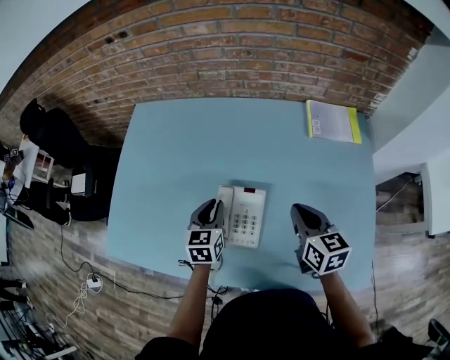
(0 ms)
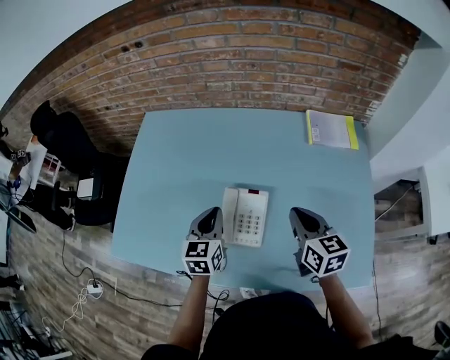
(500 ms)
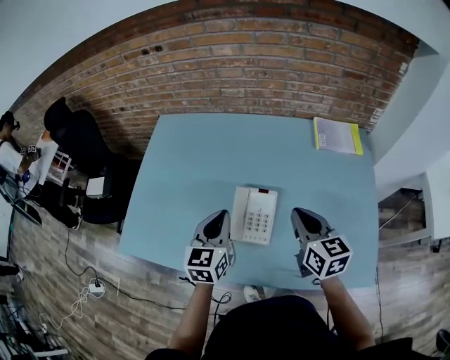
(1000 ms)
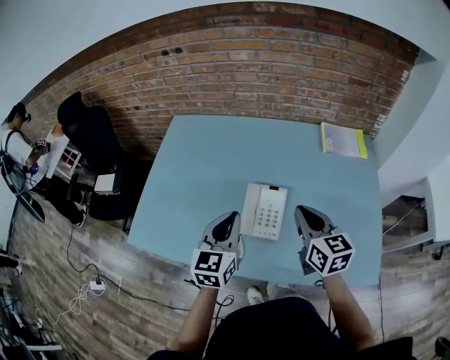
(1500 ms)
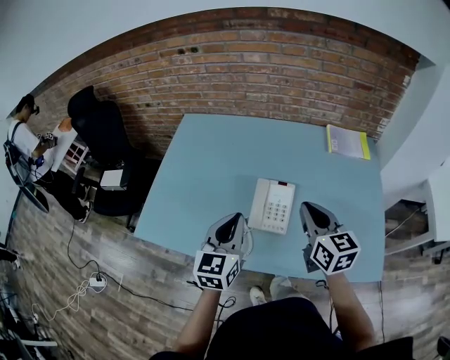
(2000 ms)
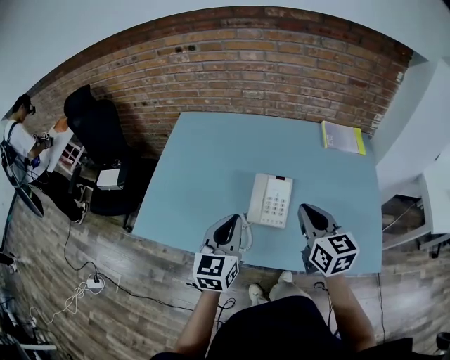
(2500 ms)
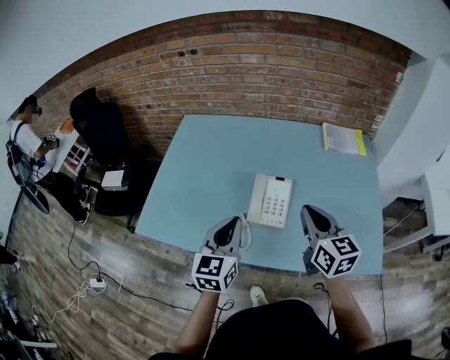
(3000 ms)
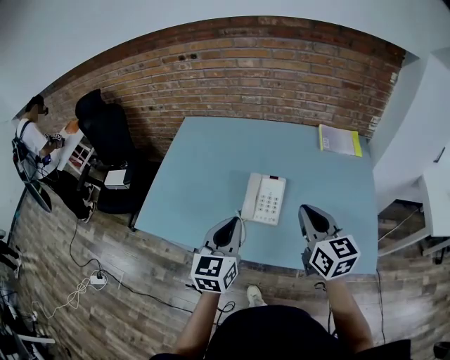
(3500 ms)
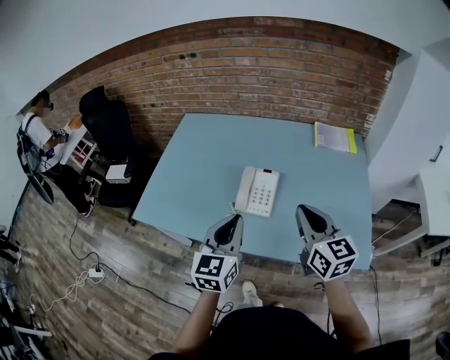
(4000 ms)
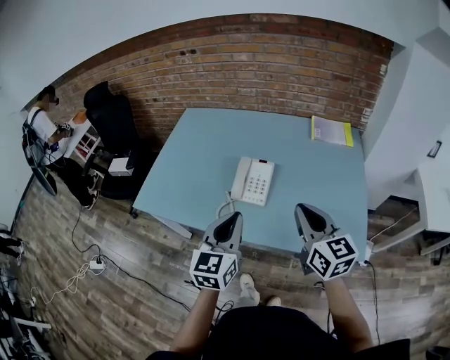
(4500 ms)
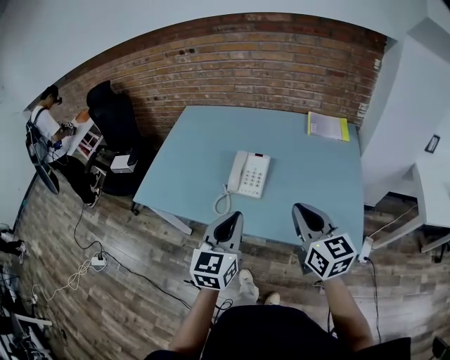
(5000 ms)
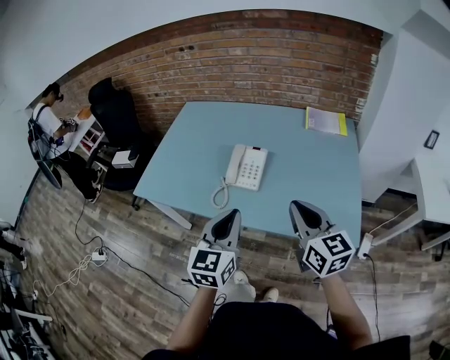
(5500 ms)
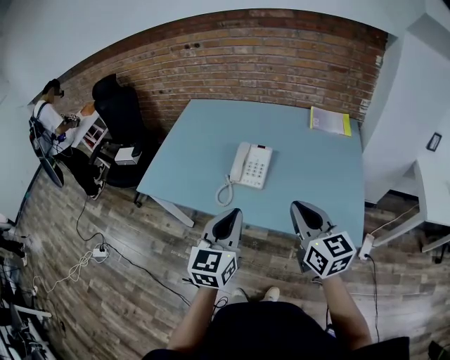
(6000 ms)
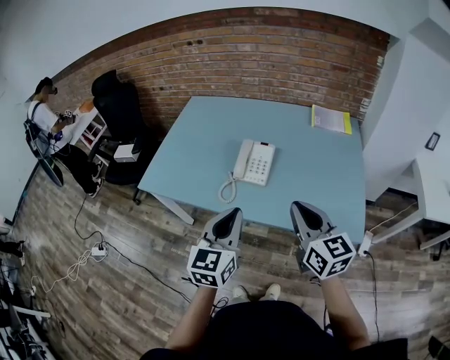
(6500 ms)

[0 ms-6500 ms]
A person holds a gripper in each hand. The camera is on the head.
0 ms to 2000 ms: The left gripper is displaced backward and upward by approximately 25 cm, and rotates approximately 20 degrees. Meanwhile the right gripper is displaced upward, backward and to the left by about 20 cm.
2000 ms to 4500 ms: Both grippers move backward and to the right, some 20 cm.
4500 ms to 6500 ms: The two grippers go approximately 10 cm backward.

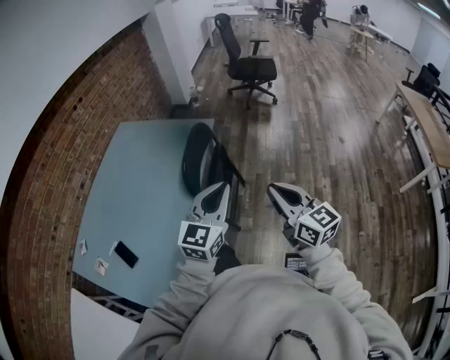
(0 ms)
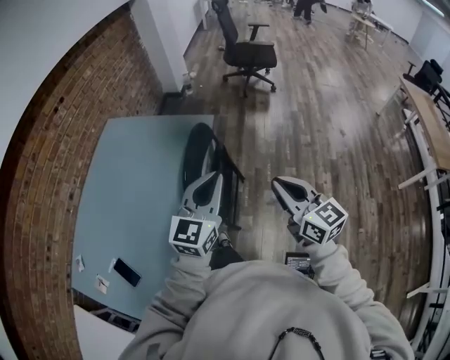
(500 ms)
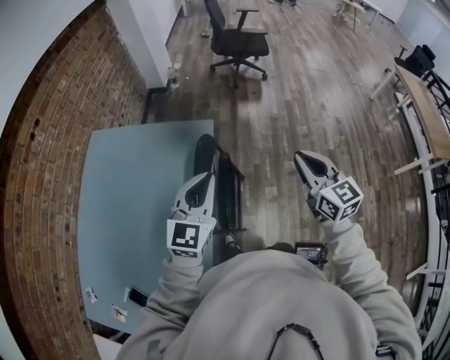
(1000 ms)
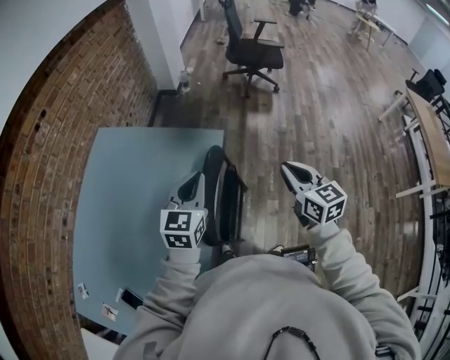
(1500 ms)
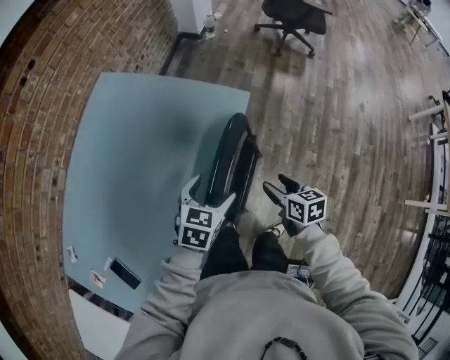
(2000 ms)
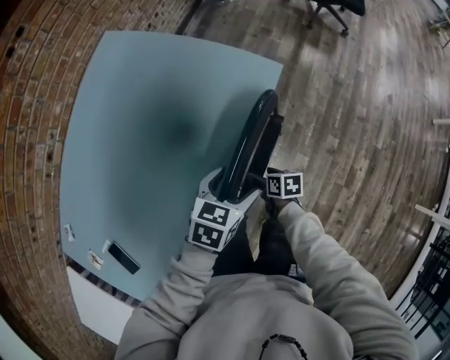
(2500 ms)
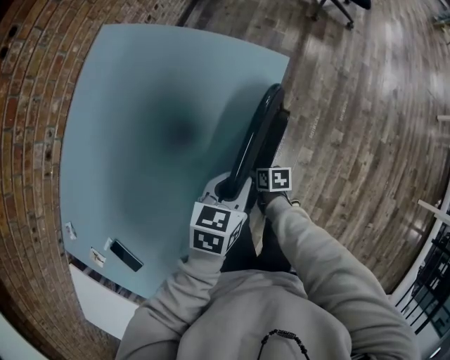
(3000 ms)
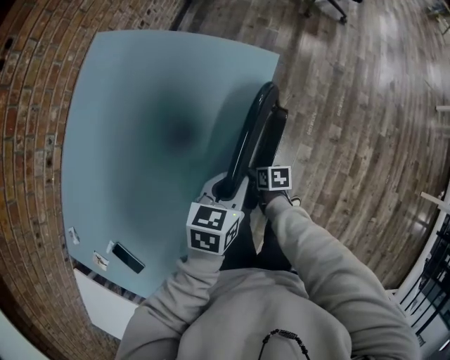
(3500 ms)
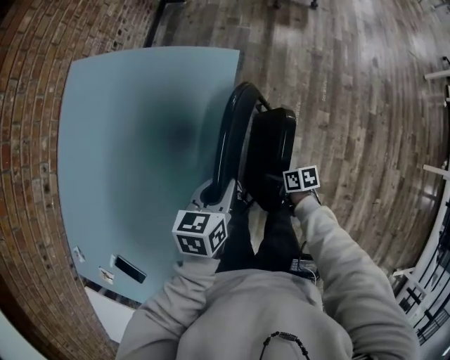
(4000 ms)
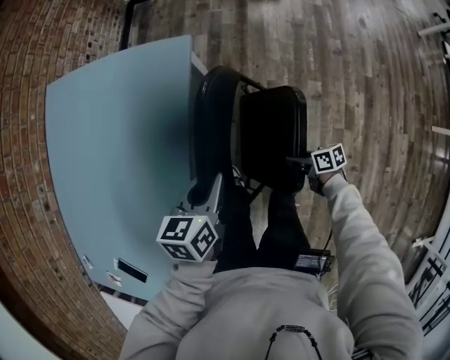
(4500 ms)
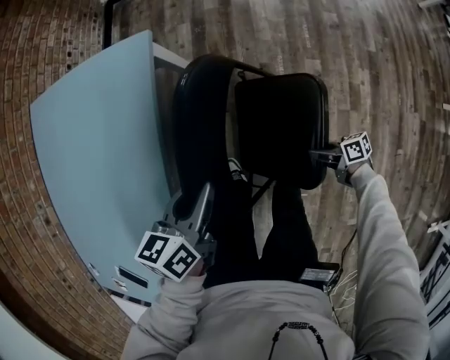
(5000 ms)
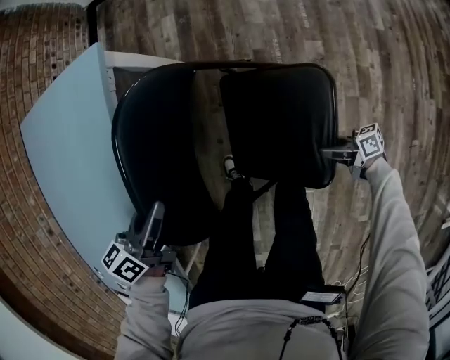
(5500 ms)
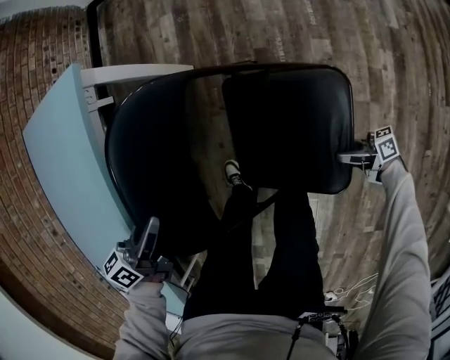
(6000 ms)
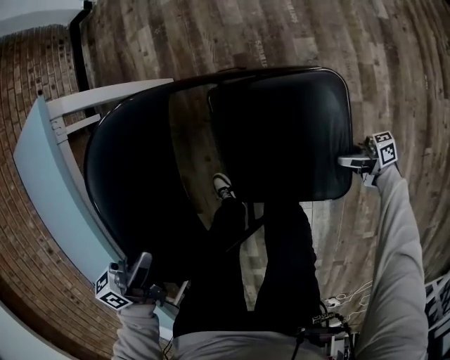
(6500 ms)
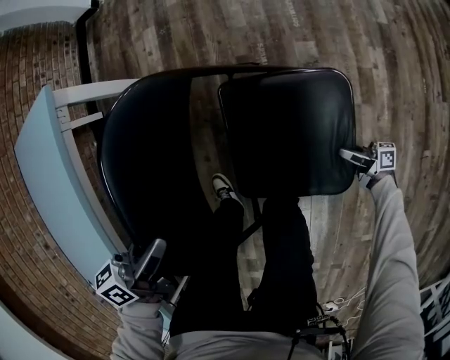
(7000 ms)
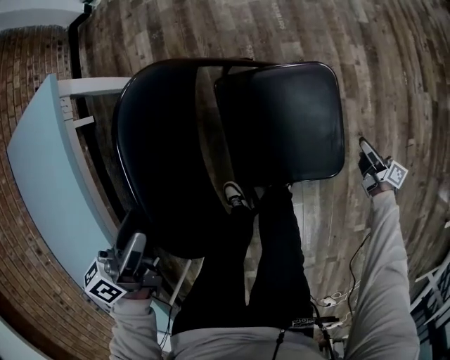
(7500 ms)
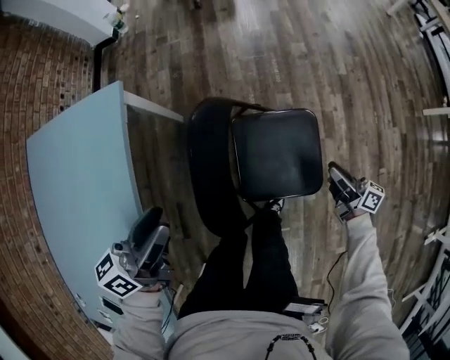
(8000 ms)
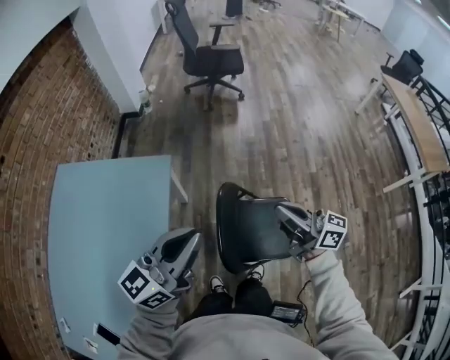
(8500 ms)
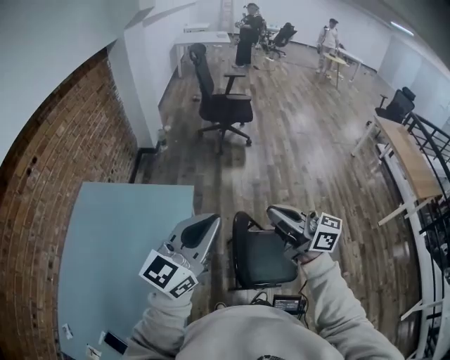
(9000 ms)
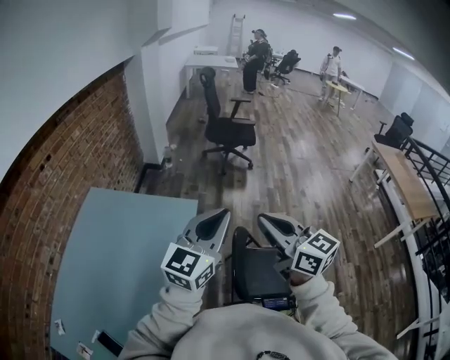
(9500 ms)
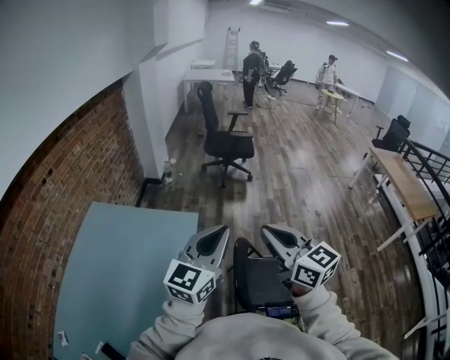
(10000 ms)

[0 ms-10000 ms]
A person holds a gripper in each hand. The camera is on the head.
0 ms to 2000 ms: Both grippers are carried forward, roughly 40 cm. Both grippers move downward, roughly 30 cm. The right gripper points its fingers approximately 40 degrees further downward, and opens its fingers. Meanwhile the left gripper angles its fingers downward, by roughly 40 degrees, and opens up.
2000 ms to 4000 ms: The right gripper travels downward by roughly 25 cm, and rotates approximately 30 degrees. Meanwhile the left gripper goes about 5 cm downward, and closes up.
4000 ms to 6000 ms: The left gripper goes approximately 20 cm downward and to the right. The right gripper travels to the right, downward and backward by approximately 50 cm, and tilts its fingers approximately 50 degrees upward.
6000 ms to 8000 ms: The two grippers go roughly 25 cm upward. The right gripper rotates some 50 degrees, while the left gripper rotates roughly 20 degrees, and opens its fingers.
8000 ms to 10000 ms: The left gripper heads upward, covering some 40 cm, twists about 50 degrees clockwise, seen from behind, and closes up. Meanwhile the right gripper is displaced upward and to the left by approximately 80 cm, twists approximately 60 degrees counterclockwise, seen from behind, and closes.

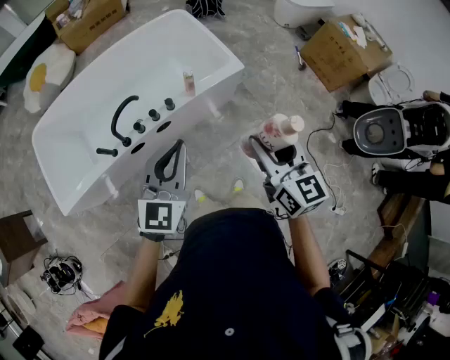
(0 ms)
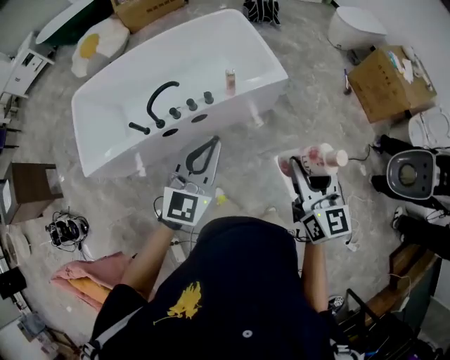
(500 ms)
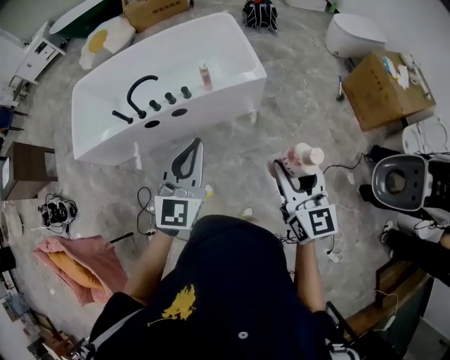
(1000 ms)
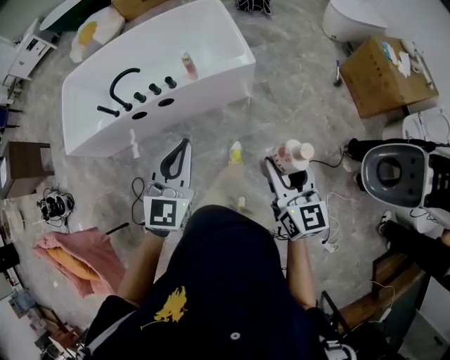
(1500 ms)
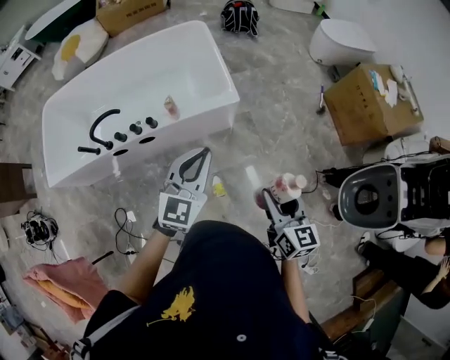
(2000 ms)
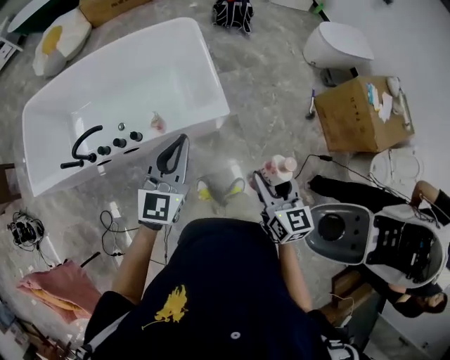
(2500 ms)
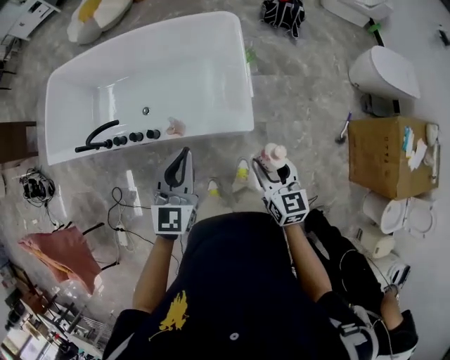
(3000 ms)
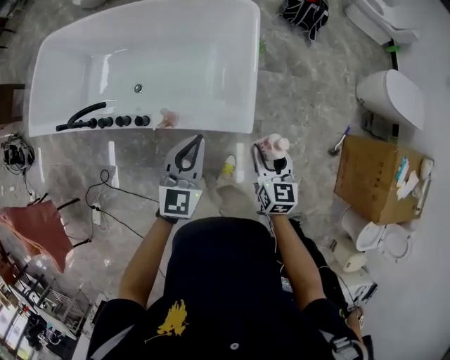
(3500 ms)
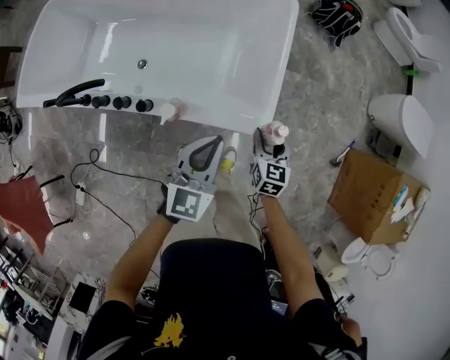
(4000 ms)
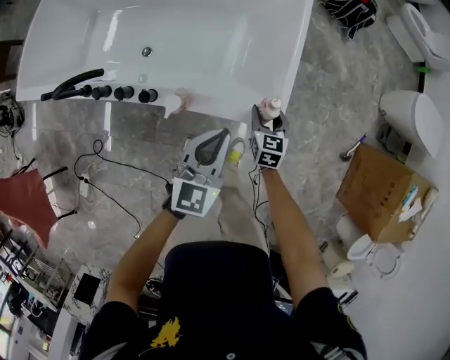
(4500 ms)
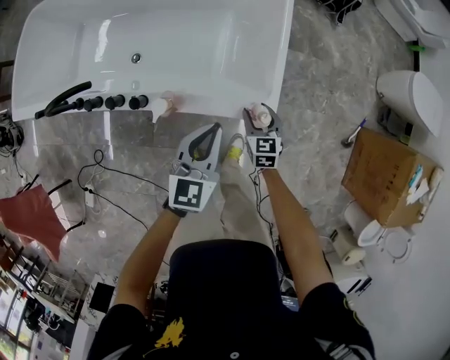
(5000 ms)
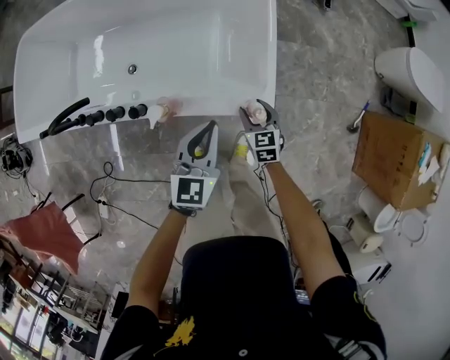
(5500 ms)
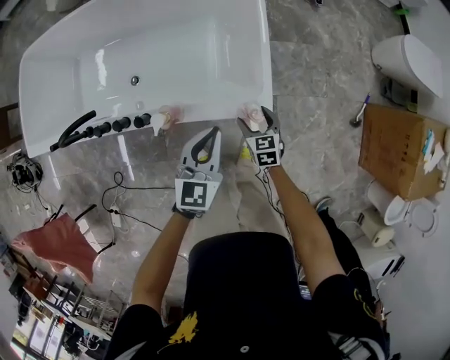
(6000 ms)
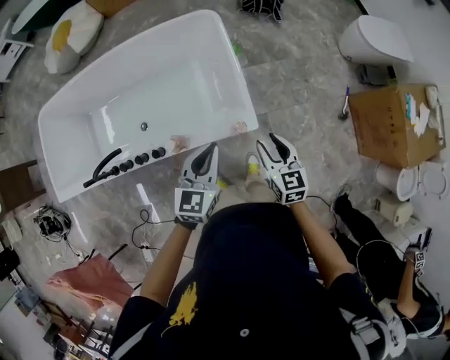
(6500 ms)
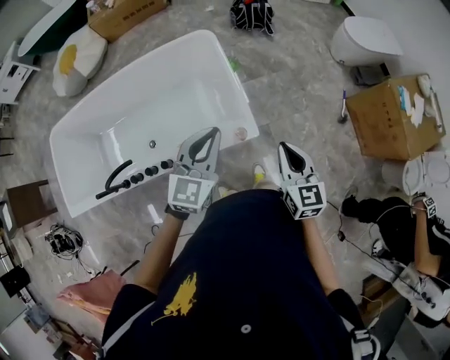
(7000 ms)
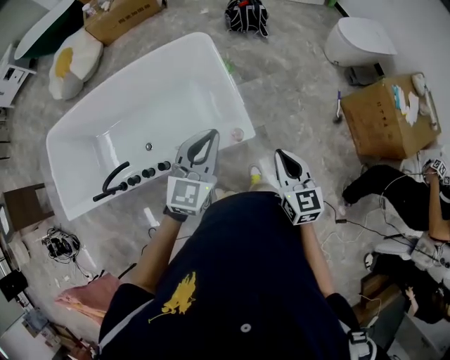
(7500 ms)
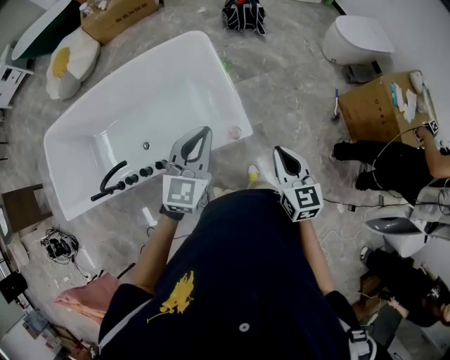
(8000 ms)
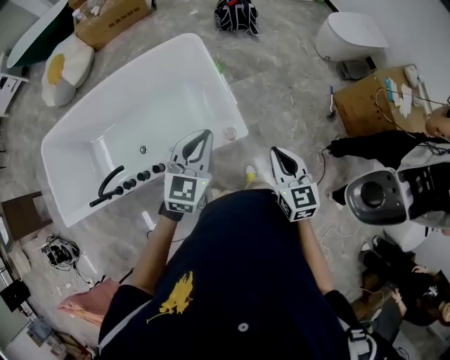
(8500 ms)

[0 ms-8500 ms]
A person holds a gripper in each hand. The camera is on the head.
0 ms to 2000 ms: Both grippers move to the right, roughly 35 cm.
2000 ms to 4000 ms: The right gripper moves forward and downward, some 60 cm, and swivels some 30 degrees; the left gripper moves forward and downward, about 40 cm, and rotates some 30 degrees.
4000 ms to 6500 ms: The left gripper is displaced upward by some 10 cm. Meanwhile the right gripper travels upward and backward by roughly 20 cm.
6500 ms to 8500 ms: The left gripper moves upward, roughly 10 cm, while the right gripper shifts about 10 cm upward and backward, and closes its fingers.

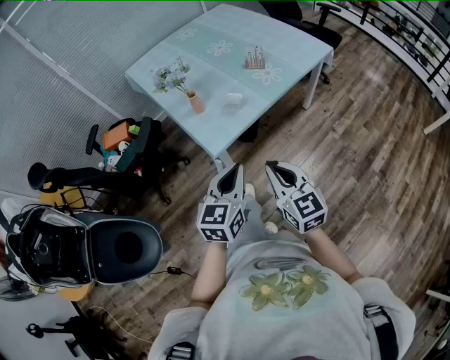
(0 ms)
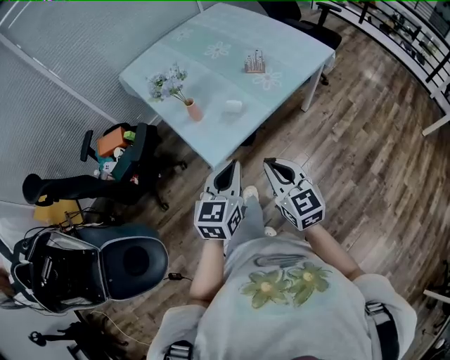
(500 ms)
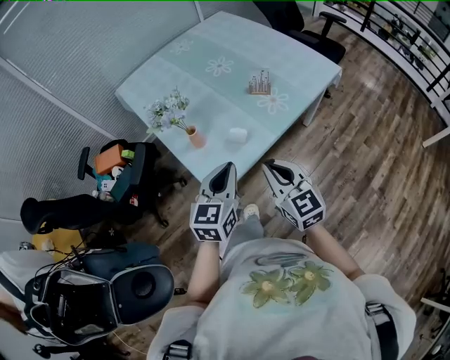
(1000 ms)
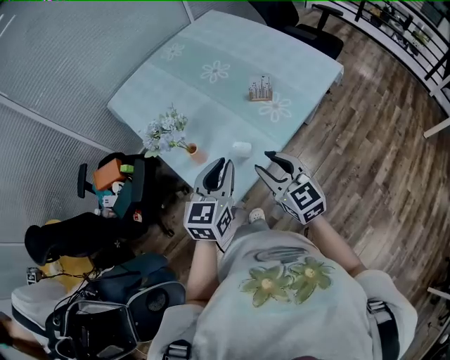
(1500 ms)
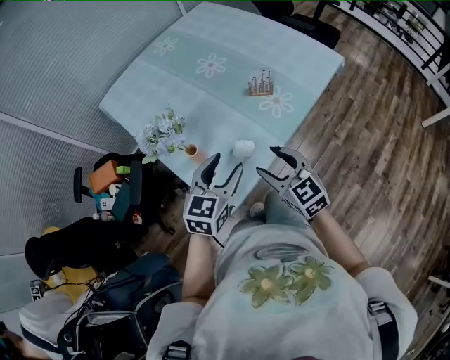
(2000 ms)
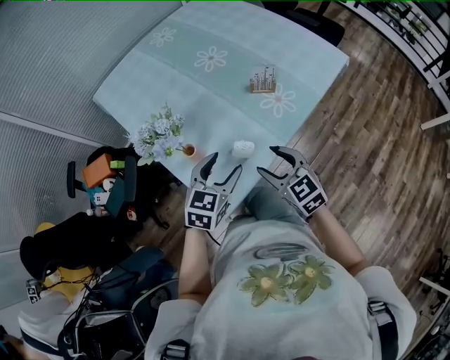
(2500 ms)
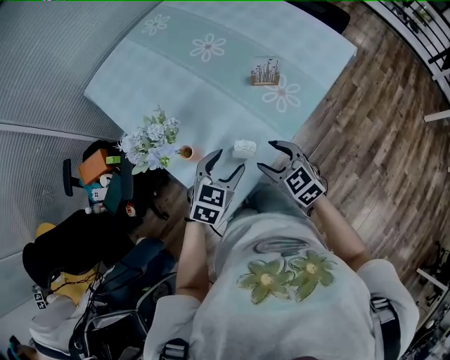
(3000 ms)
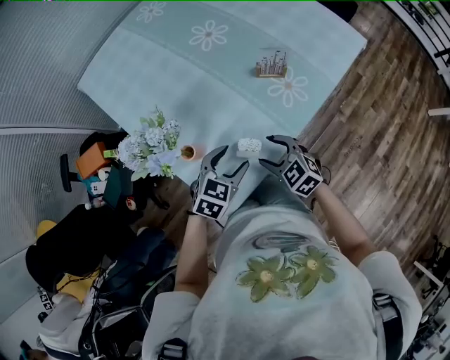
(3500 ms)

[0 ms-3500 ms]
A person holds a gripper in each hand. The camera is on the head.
0 ms to 2000 ms: Both grippers move forward, about 30 cm. The left gripper opens up, while the right gripper opens.
2000 ms to 3500 ms: The left gripper travels downward by approximately 15 cm, and turns by roughly 20 degrees, while the right gripper goes about 15 cm downward and forward, and swivels some 30 degrees.
